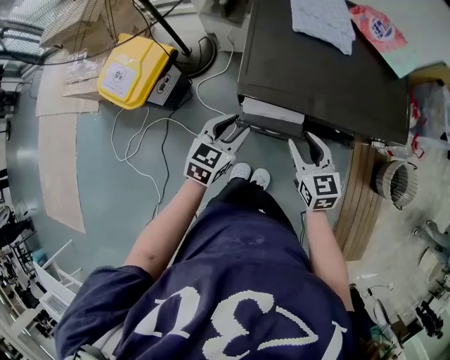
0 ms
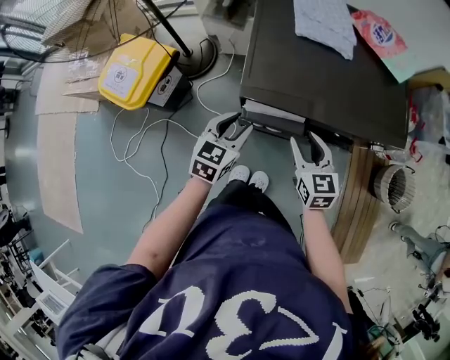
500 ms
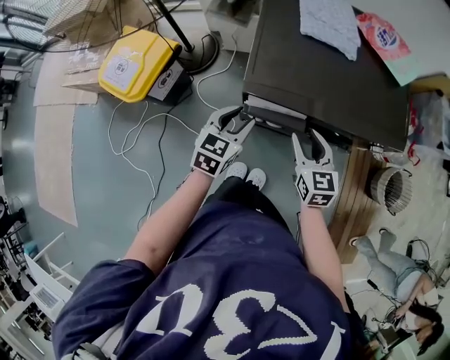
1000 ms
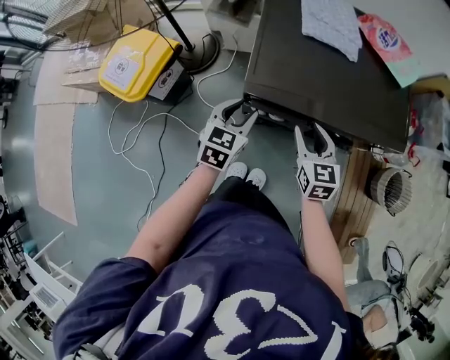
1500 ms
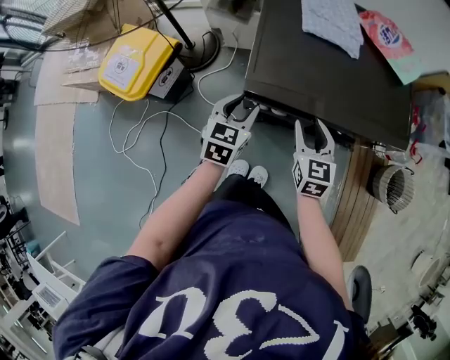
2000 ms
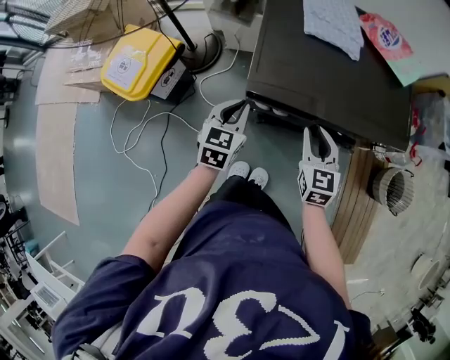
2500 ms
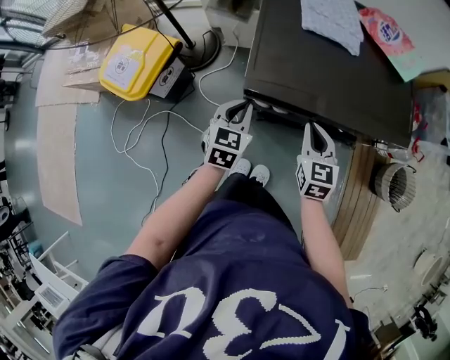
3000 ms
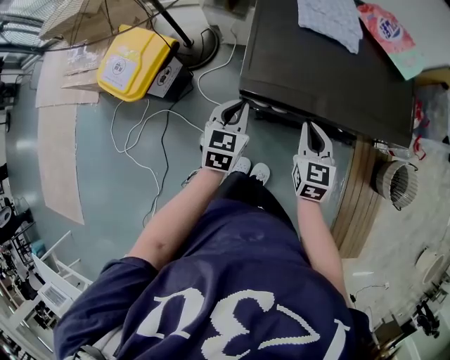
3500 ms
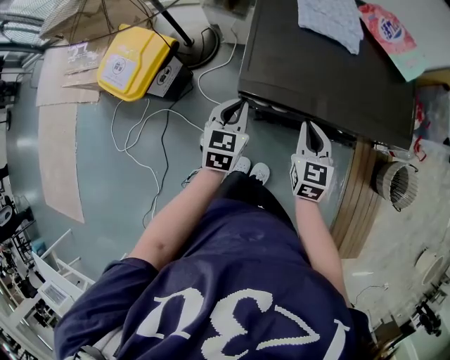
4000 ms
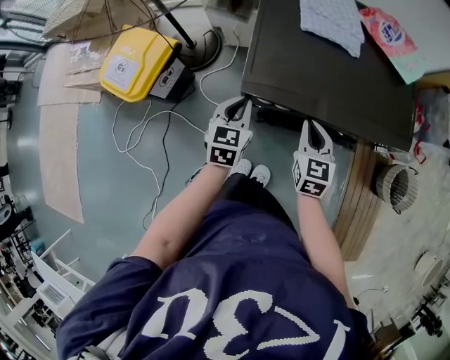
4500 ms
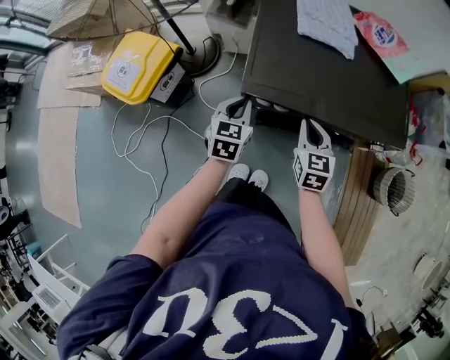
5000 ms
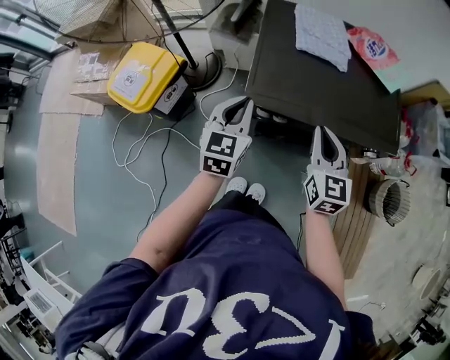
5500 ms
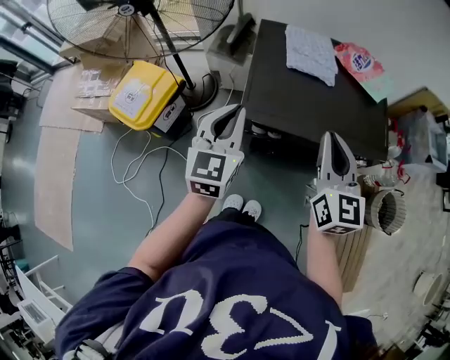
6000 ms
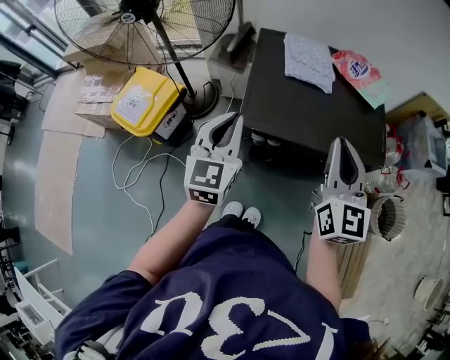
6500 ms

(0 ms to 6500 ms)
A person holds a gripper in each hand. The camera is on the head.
0 ms - 2000 ms: The left gripper travels forward by about 5 cm.
2000 ms - 4500 ms: The right gripper closes up. The left gripper closes up.
4500 ms - 6500 ms: Both grippers move upward, some 25 cm. The left gripper changes its angle by about 20 degrees. Meanwhile the right gripper changes its angle by some 30 degrees.

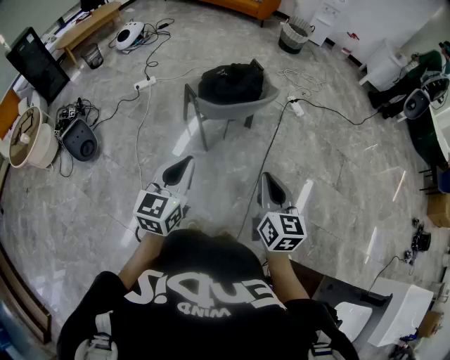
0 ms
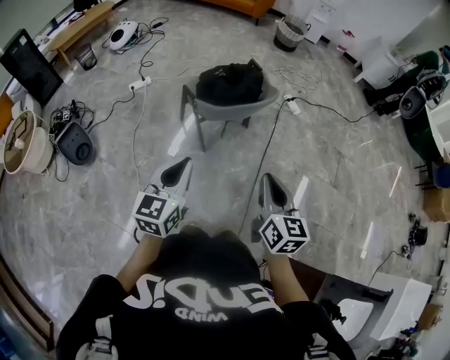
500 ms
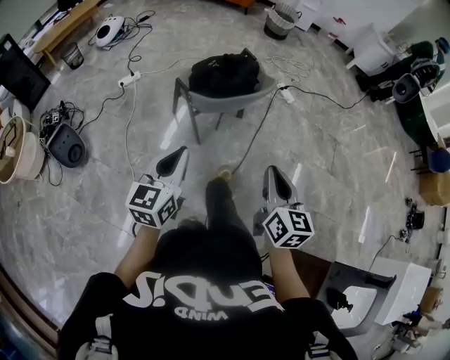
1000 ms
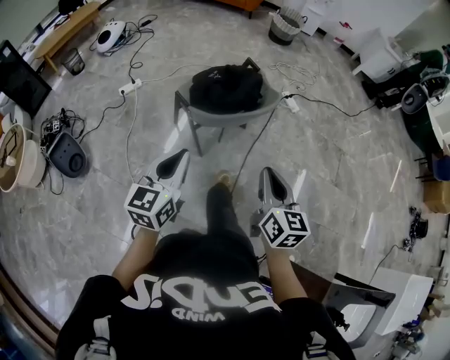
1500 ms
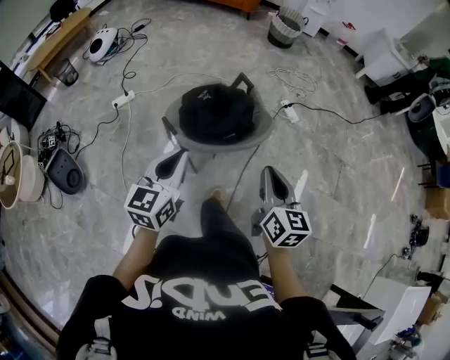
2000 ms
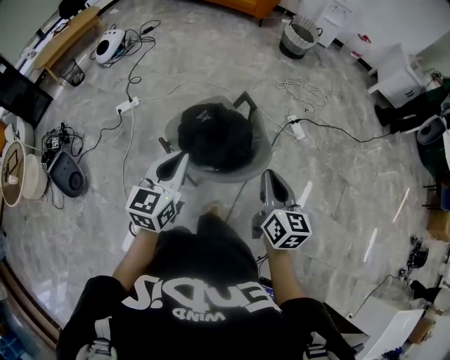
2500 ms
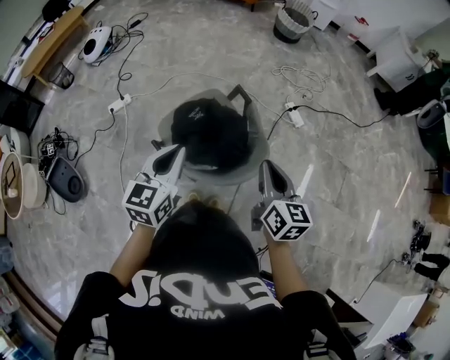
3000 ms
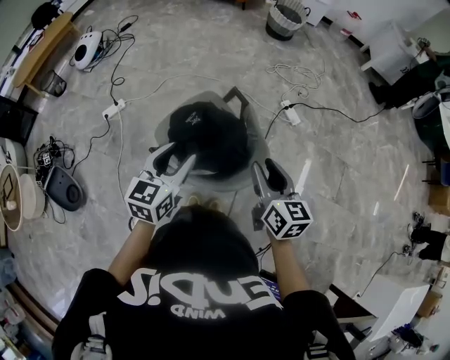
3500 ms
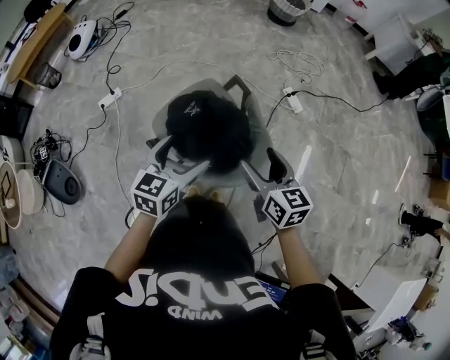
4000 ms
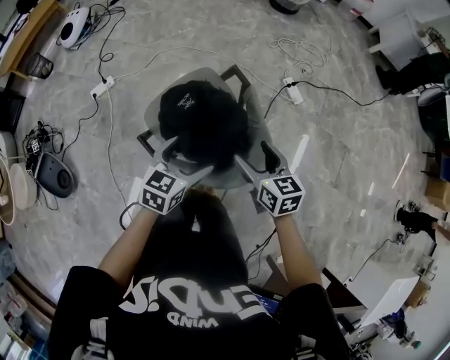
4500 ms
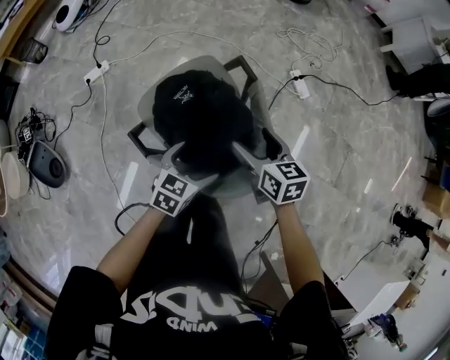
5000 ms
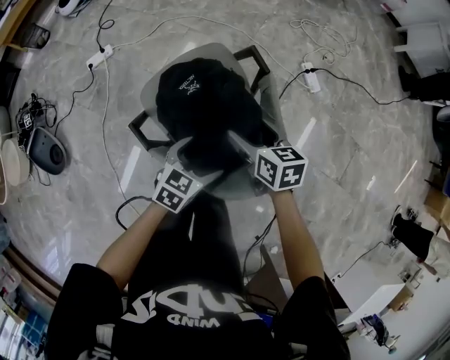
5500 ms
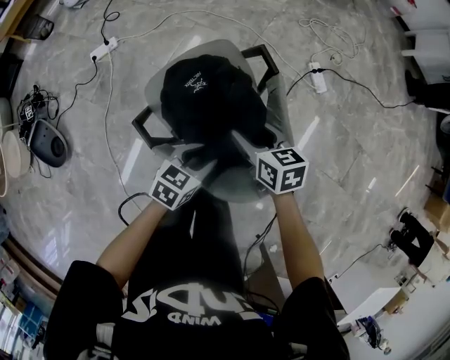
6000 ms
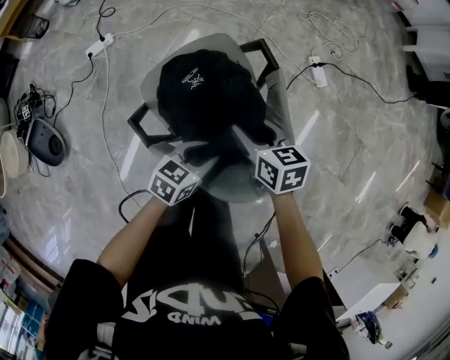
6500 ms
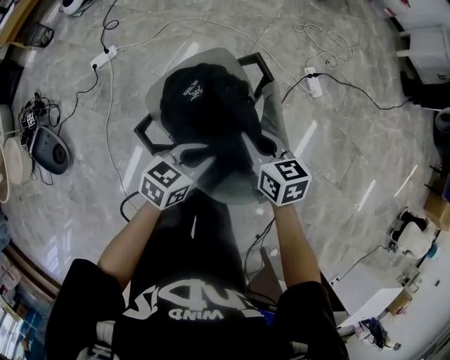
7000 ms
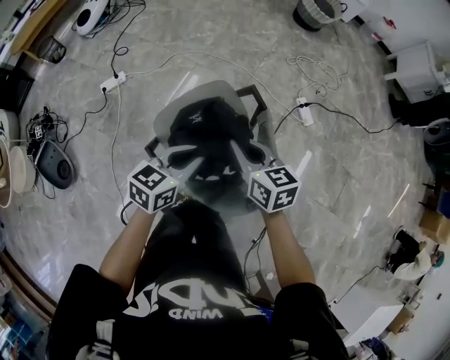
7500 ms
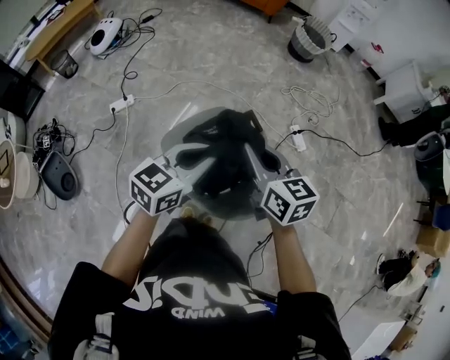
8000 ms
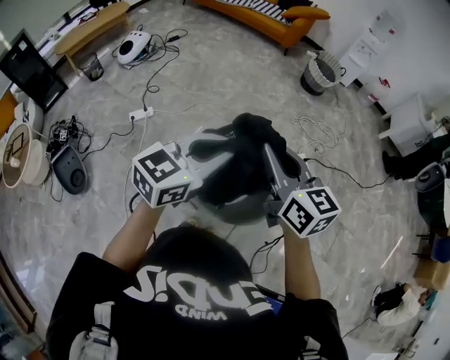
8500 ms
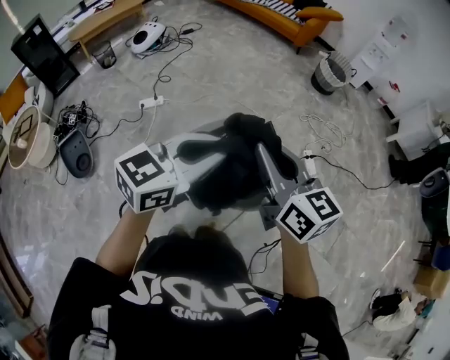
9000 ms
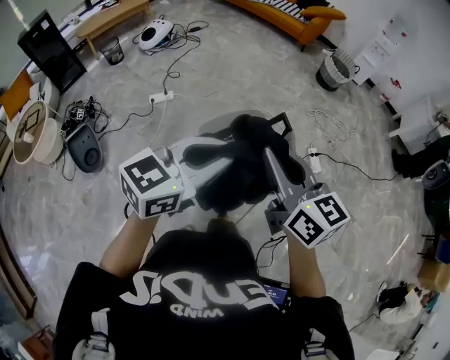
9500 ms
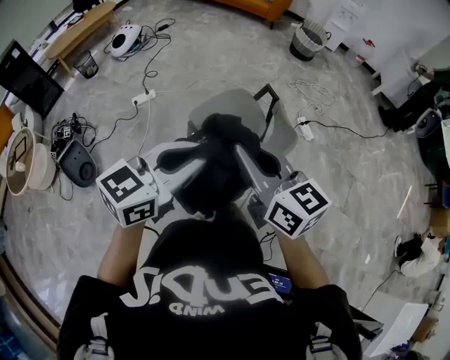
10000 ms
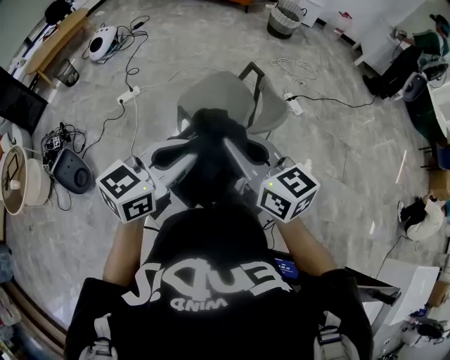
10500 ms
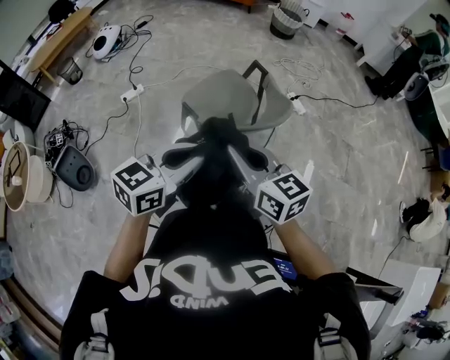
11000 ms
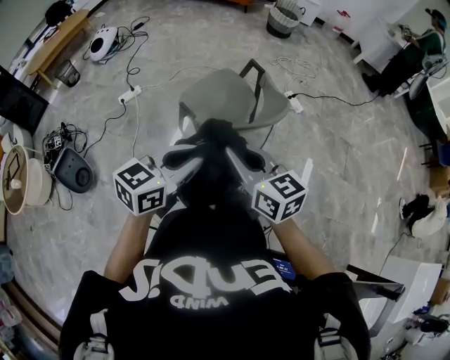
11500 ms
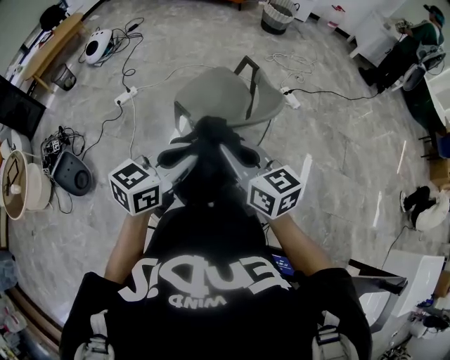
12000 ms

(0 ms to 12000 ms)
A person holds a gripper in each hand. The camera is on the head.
0 ms - 2000 ms: The two grippers go approximately 35 cm forward.
2000 ms - 4000 ms: The two grippers go roughly 25 cm forward. The right gripper opens; the left gripper opens up.
4000 ms - 6000 ms: The right gripper heads downward and forward, covering roughly 25 cm, and changes its angle by approximately 30 degrees, while the left gripper travels downward by about 25 cm, changes its angle by roughly 20 degrees, and closes up.
6000 ms - 8000 ms: Both grippers travel together upward, some 30 cm. The left gripper turns by about 30 degrees, while the right gripper rotates approximately 20 degrees, and closes its fingers.
8000 ms - 10000 ms: The two grippers go roughly 35 cm backward.
10000 ms - 12000 ms: The left gripper travels downward and backward by approximately 15 cm. Meanwhile the right gripper goes roughly 15 cm backward and downward.

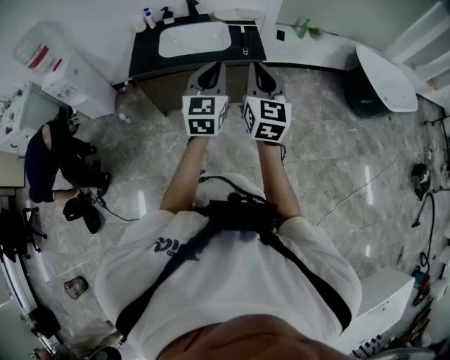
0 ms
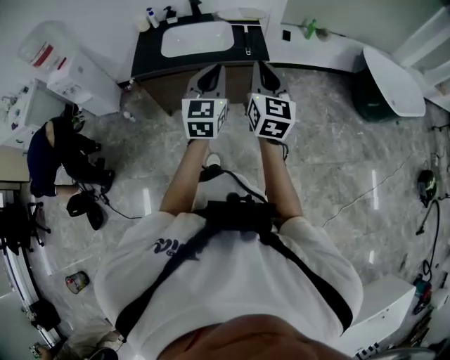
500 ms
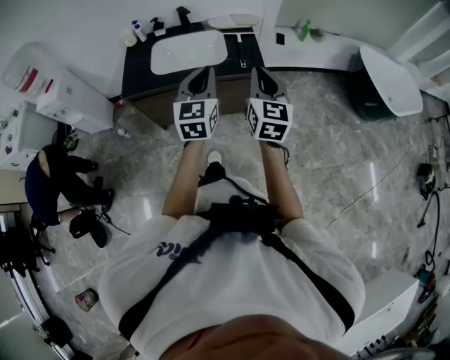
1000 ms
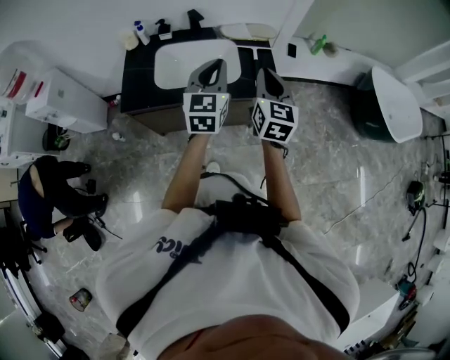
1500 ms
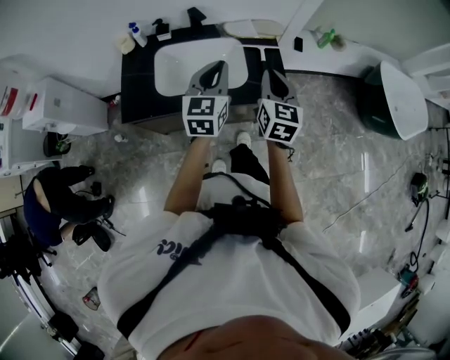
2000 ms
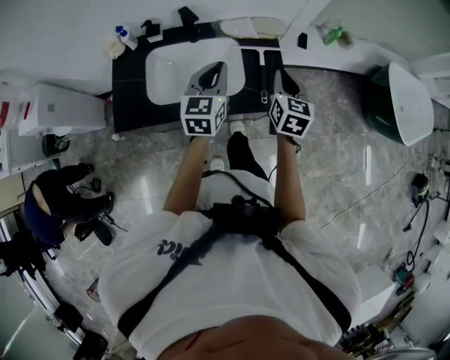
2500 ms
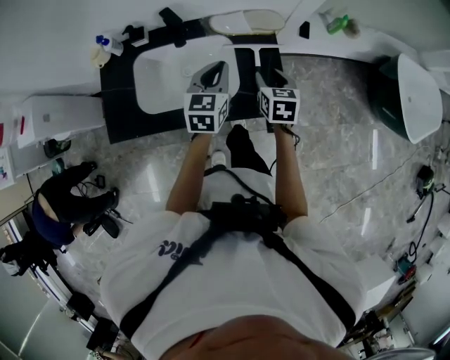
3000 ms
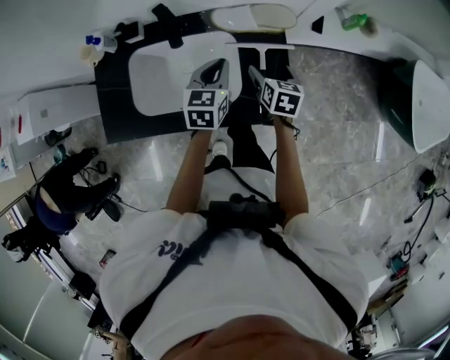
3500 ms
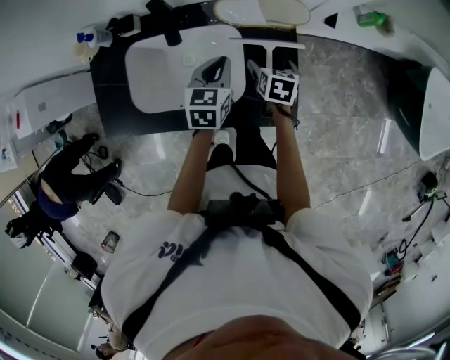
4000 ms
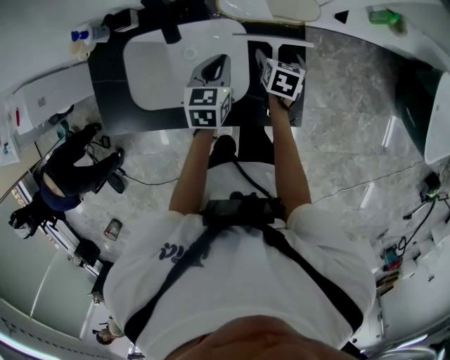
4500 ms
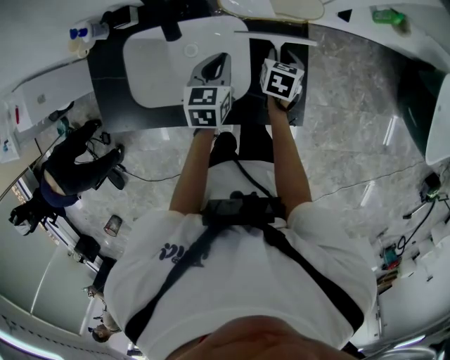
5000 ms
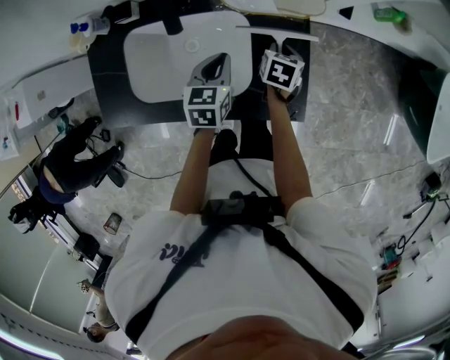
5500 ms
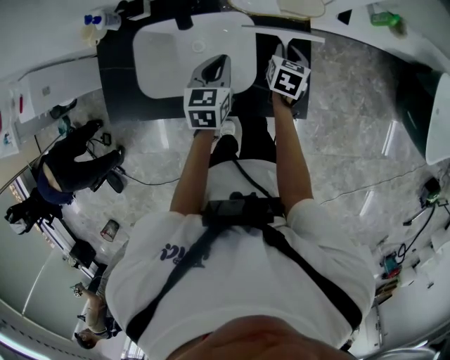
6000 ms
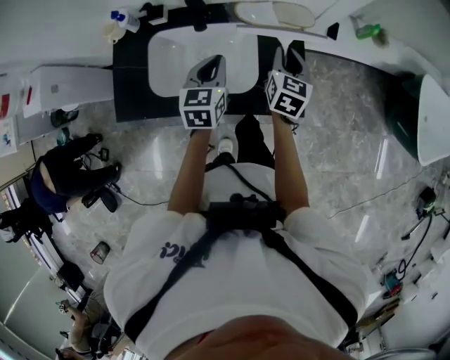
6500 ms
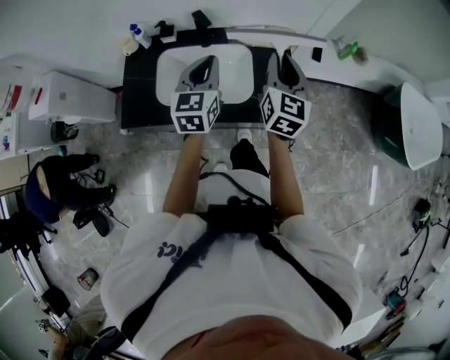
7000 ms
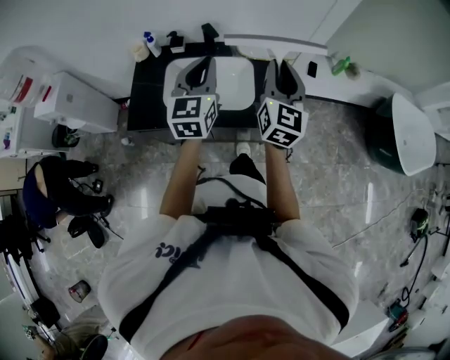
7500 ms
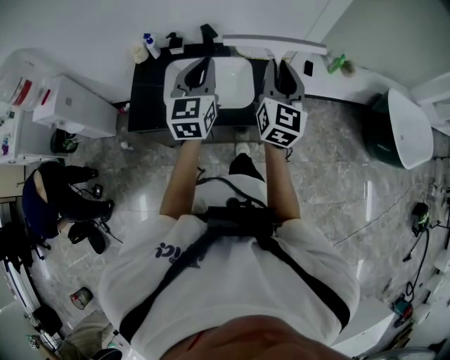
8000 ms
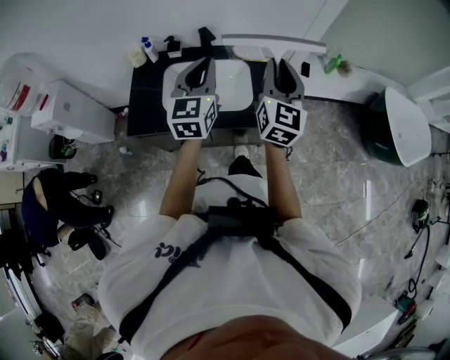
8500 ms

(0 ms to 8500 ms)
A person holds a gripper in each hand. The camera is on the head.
0 ms - 2000 ms: The grippers both shift forward by approximately 35 cm.
2000 ms - 4000 ms: The two grippers go approximately 35 cm downward and forward. The right gripper tips its fingers downward by roughly 40 degrees, and opens, while the left gripper swivels approximately 30 degrees.
4000 ms - 6500 ms: The left gripper shifts roughly 15 cm upward, backward and to the left. The right gripper goes some 15 cm upward, rotates about 30 degrees, and closes its fingers.
6500 ms - 8500 ms: The two grippers go some 25 cm upward and backward. The right gripper points its fingers roughly 30 degrees further upward; the left gripper turns by approximately 30 degrees.
